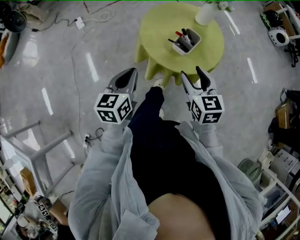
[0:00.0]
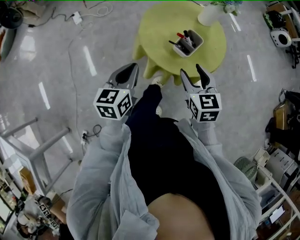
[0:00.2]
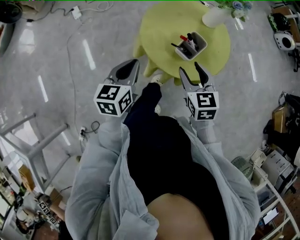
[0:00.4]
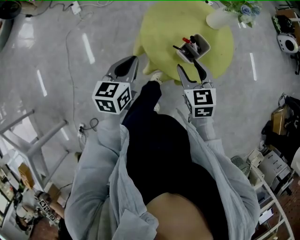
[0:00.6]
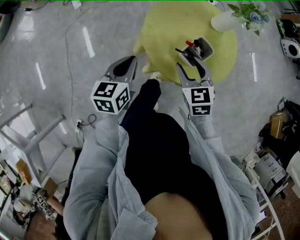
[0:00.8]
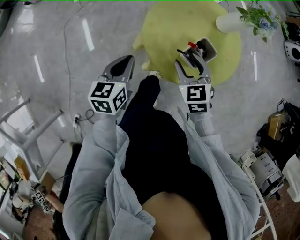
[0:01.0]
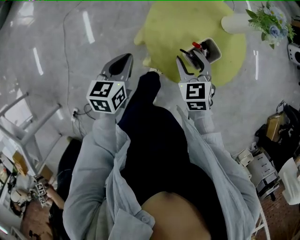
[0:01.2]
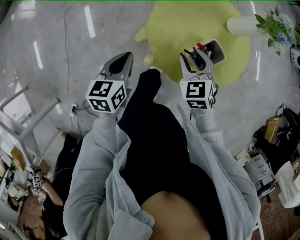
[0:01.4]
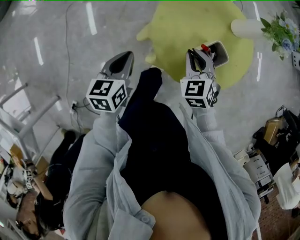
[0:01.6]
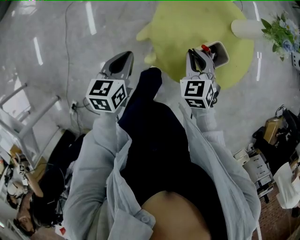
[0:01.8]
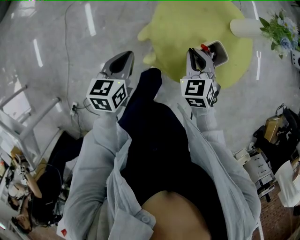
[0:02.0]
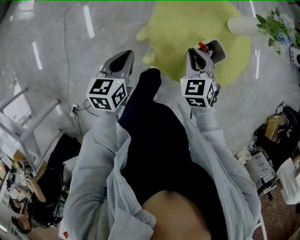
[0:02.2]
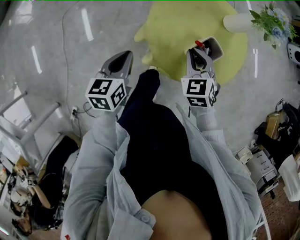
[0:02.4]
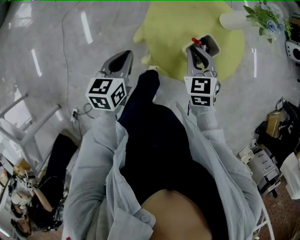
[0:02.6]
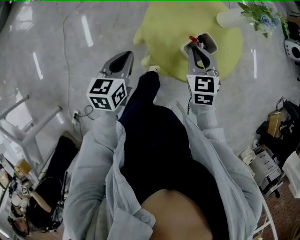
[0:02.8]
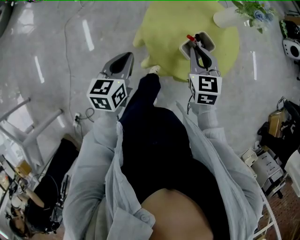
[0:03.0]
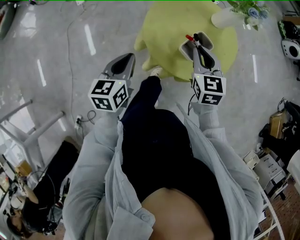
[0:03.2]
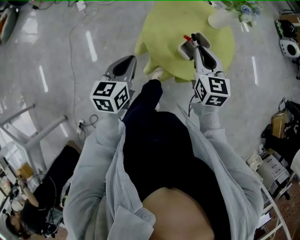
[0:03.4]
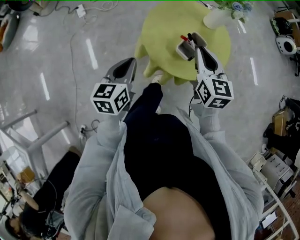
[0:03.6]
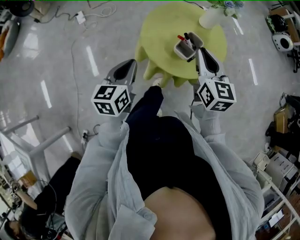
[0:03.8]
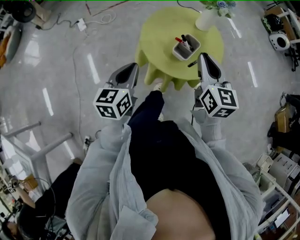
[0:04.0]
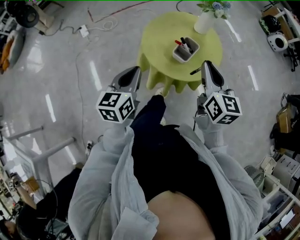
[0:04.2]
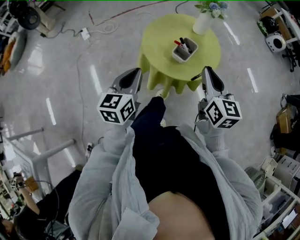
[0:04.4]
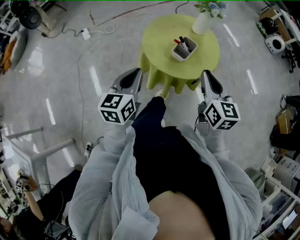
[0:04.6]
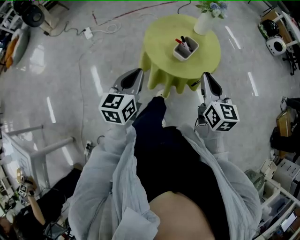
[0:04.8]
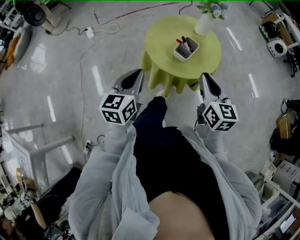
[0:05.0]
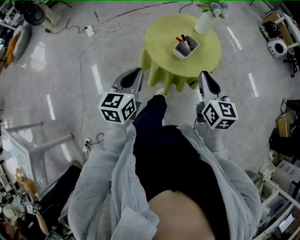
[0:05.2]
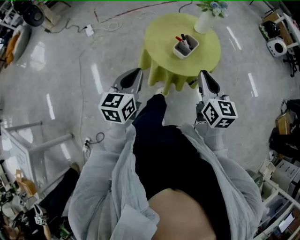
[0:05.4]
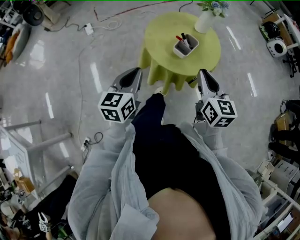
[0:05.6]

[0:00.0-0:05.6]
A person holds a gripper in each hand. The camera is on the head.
0:00.0 to 0:01.4: Both grippers move forward and downward, approximately 20 cm. The right gripper swivels some 30 degrees.
0:01.4 to 0:02.8: The right gripper shifts by approximately 5 cm, and closes its fingers.
0:02.8 to 0:04.2: Both grippers move upward and backward, approximately 20 cm. The right gripper turns by roughly 40 degrees.
0:04.2 to 0:05.6: Both grippers move backward, approximately 5 cm.

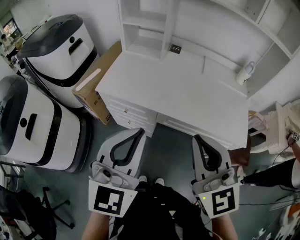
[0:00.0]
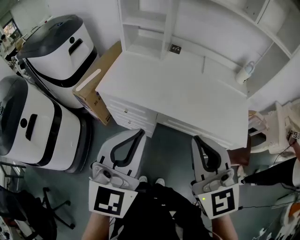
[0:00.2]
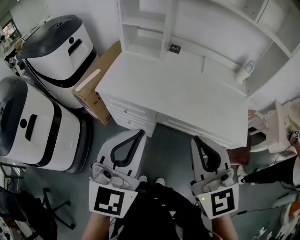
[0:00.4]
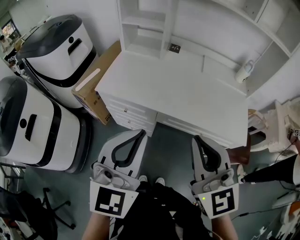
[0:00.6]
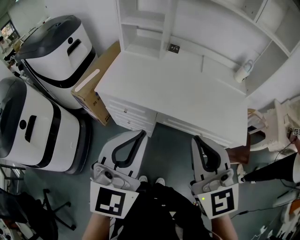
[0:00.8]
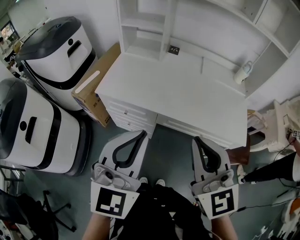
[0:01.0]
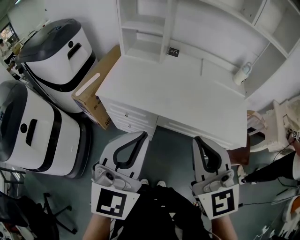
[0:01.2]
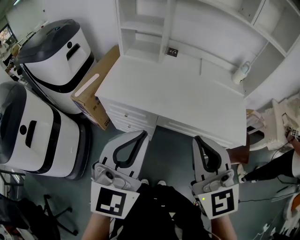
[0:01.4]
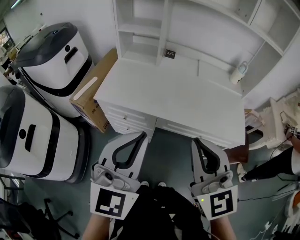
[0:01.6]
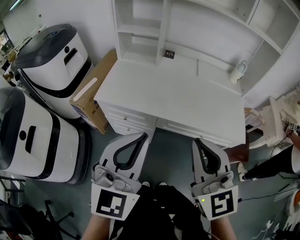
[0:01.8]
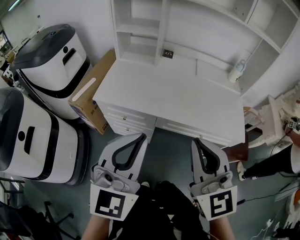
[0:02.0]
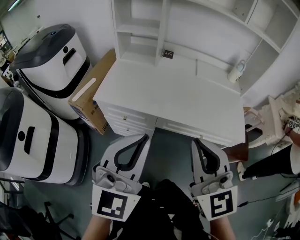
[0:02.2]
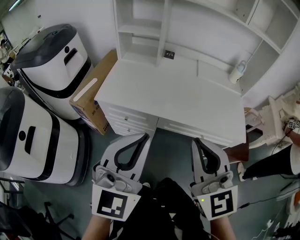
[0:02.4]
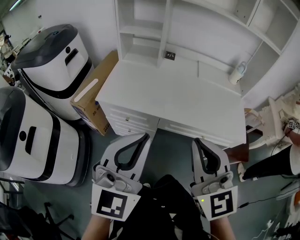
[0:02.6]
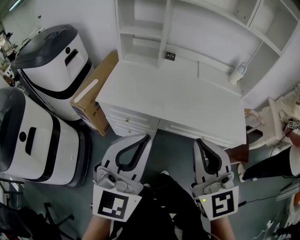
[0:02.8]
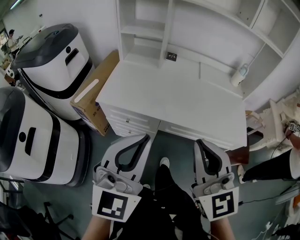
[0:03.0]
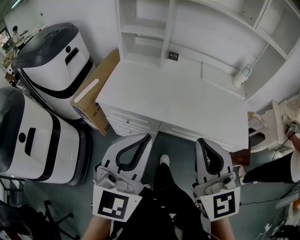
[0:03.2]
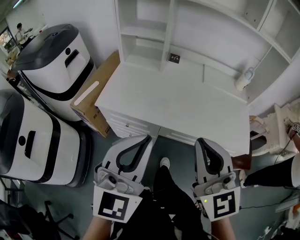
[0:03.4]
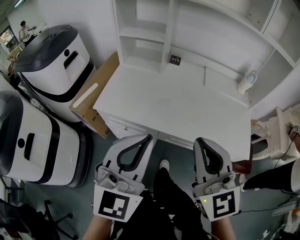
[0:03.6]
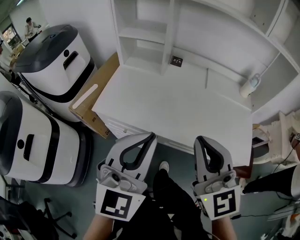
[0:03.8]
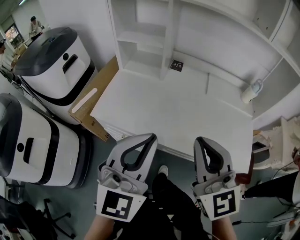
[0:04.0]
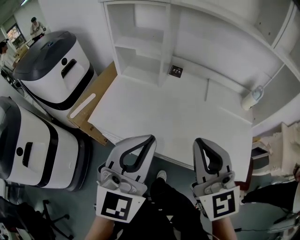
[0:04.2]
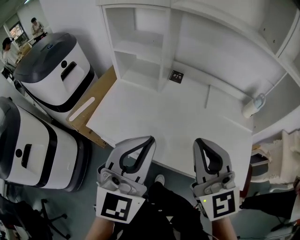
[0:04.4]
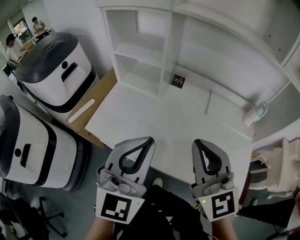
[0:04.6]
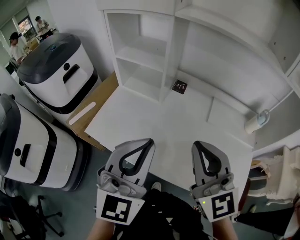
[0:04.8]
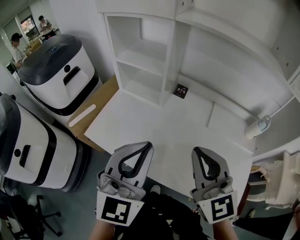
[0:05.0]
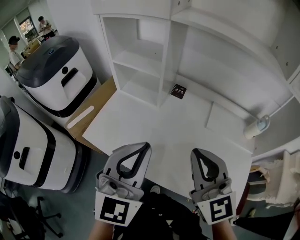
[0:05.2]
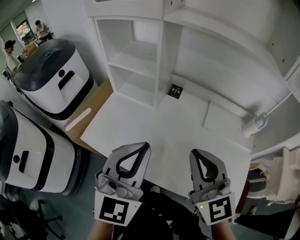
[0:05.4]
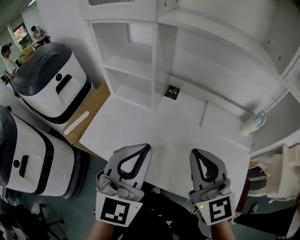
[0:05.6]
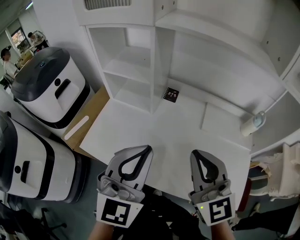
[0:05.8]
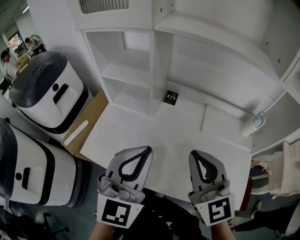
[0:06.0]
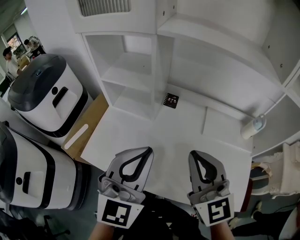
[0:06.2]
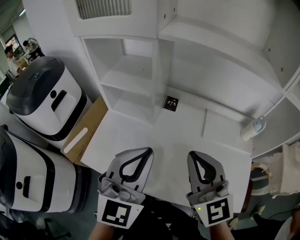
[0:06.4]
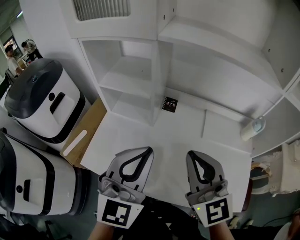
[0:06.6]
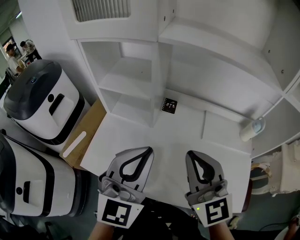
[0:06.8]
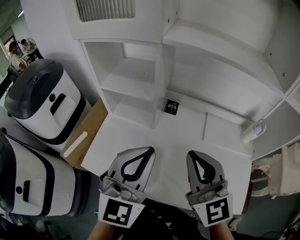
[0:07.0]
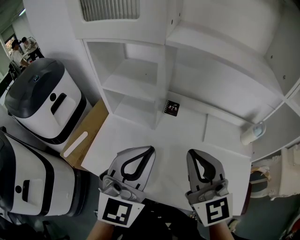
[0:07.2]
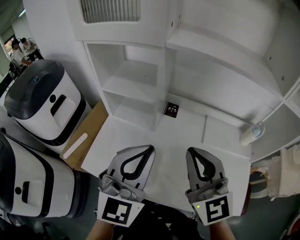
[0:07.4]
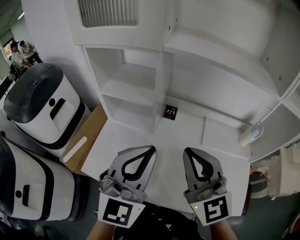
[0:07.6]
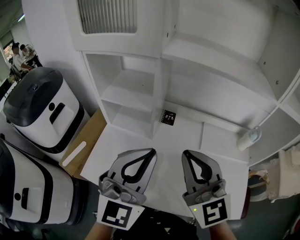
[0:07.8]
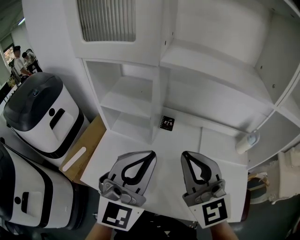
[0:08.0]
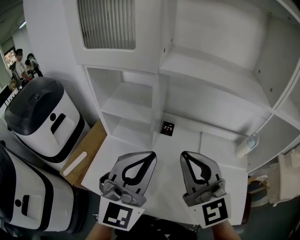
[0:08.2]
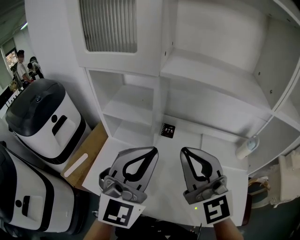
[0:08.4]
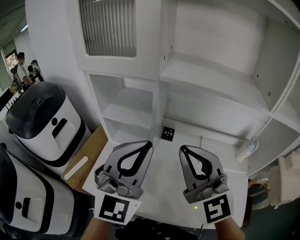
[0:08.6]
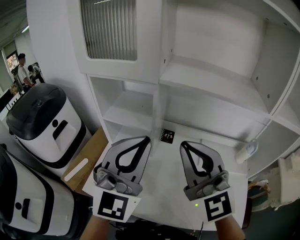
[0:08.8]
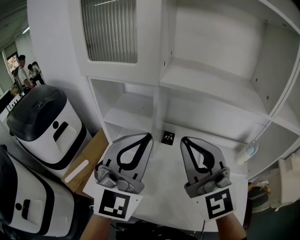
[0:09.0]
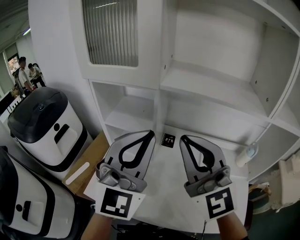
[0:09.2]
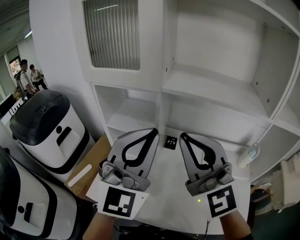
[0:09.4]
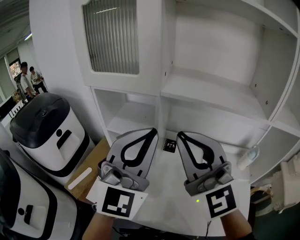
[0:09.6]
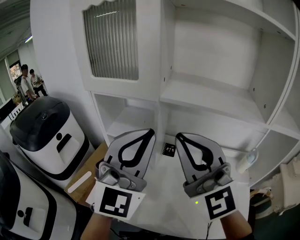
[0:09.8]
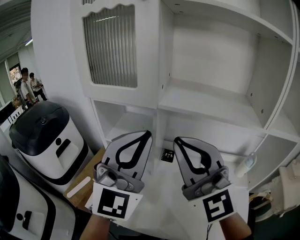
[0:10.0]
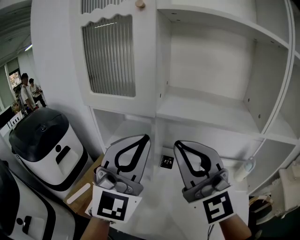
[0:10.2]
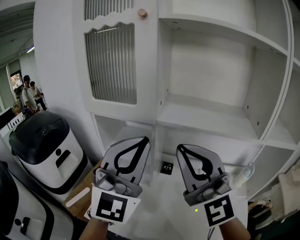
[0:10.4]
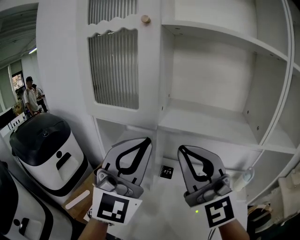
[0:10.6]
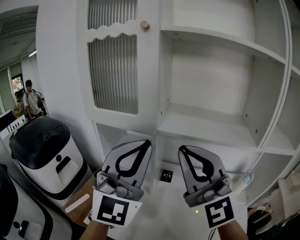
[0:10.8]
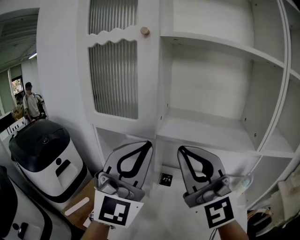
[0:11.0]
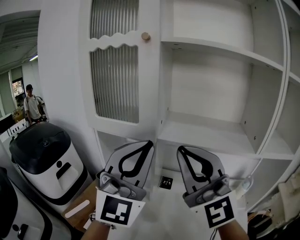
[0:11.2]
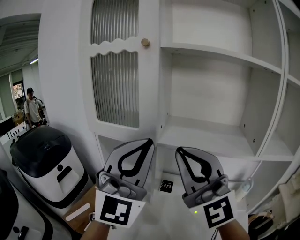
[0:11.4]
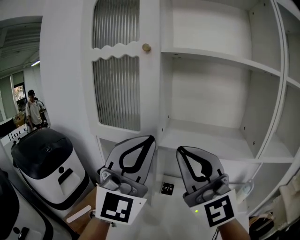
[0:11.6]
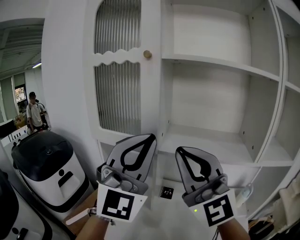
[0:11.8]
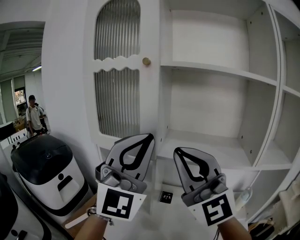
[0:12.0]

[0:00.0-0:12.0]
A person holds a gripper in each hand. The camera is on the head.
0:00.0 to 0:03.0: The grippers stay close to where they were, moving slightly.
0:03.0 to 0:04.4: The left gripper goes about 20 cm forward and to the right. The right gripper moves forward, some 20 cm.
0:04.4 to 0:06.0: Both grippers travel together forward, approximately 10 cm.
0:06.0 to 0:07.6: The right gripper heads to the left and forward, covering about 10 cm; the left gripper moves forward, approximately 5 cm.
0:07.6 to 0:09.0: The grippers both shift upward by about 10 cm.
0:09.0 to 0:10.4: Both grippers move upward, approximately 10 cm.
0:10.4 to 0:12.0: Both grippers move upward, some 10 cm.

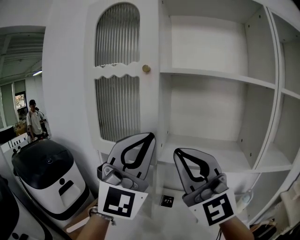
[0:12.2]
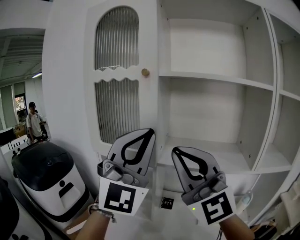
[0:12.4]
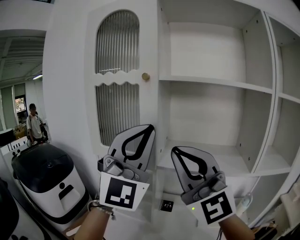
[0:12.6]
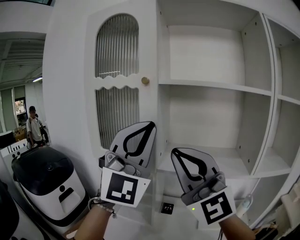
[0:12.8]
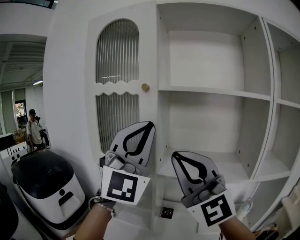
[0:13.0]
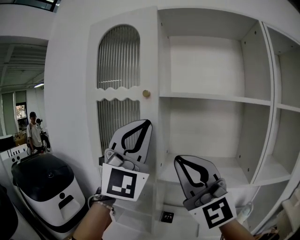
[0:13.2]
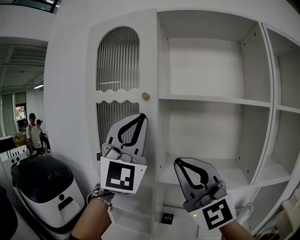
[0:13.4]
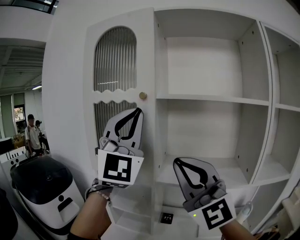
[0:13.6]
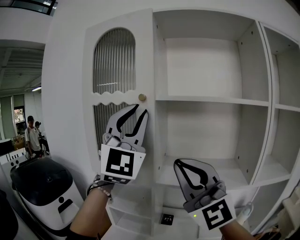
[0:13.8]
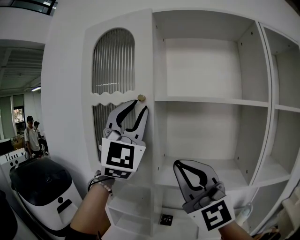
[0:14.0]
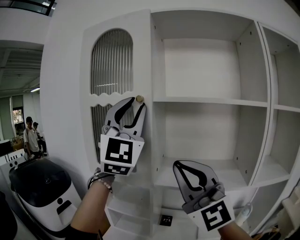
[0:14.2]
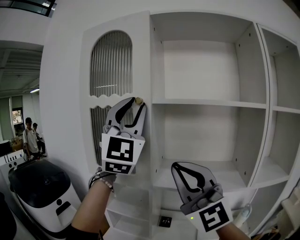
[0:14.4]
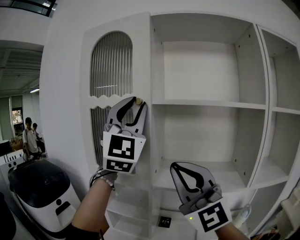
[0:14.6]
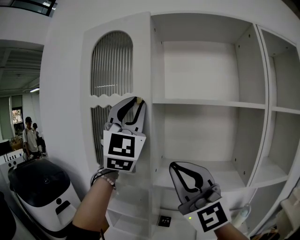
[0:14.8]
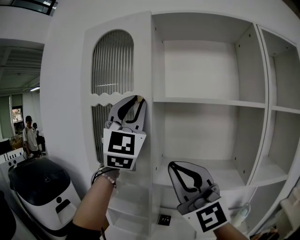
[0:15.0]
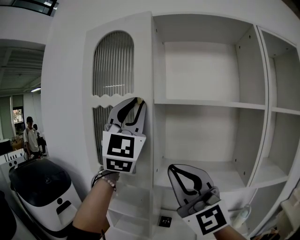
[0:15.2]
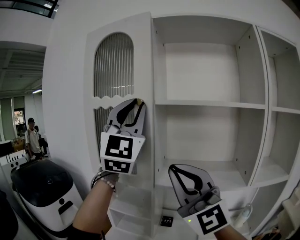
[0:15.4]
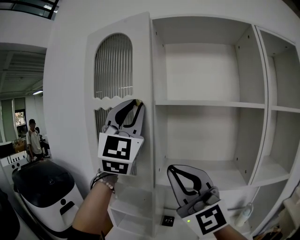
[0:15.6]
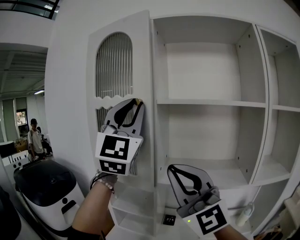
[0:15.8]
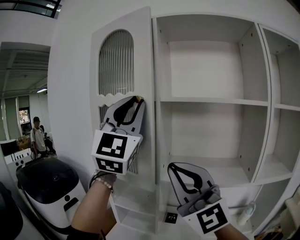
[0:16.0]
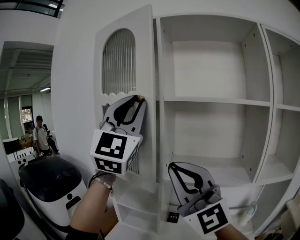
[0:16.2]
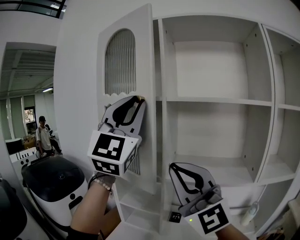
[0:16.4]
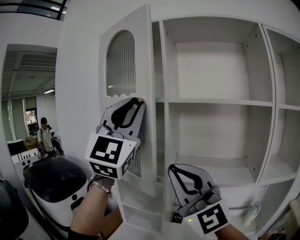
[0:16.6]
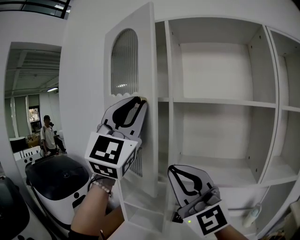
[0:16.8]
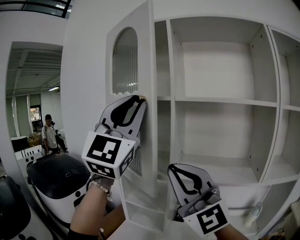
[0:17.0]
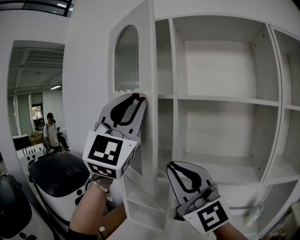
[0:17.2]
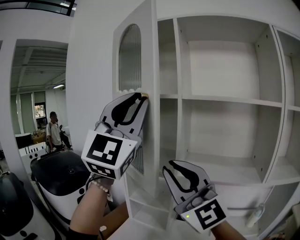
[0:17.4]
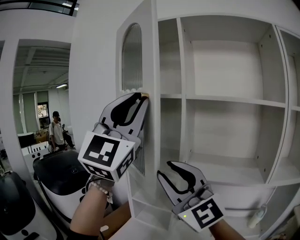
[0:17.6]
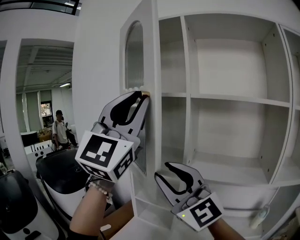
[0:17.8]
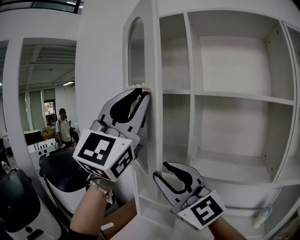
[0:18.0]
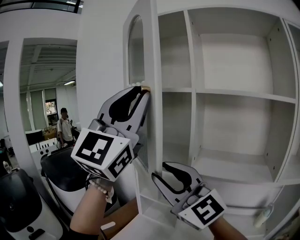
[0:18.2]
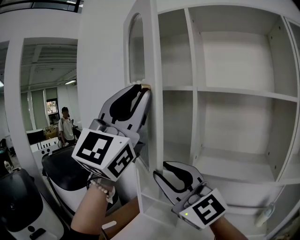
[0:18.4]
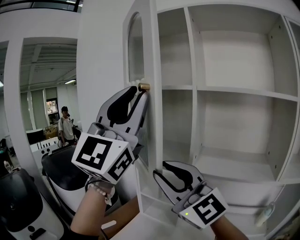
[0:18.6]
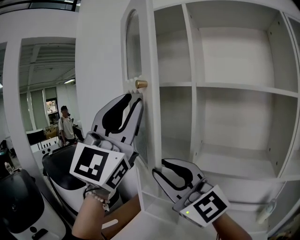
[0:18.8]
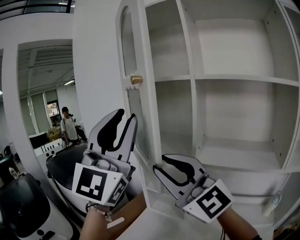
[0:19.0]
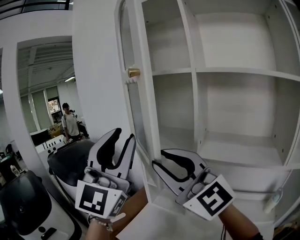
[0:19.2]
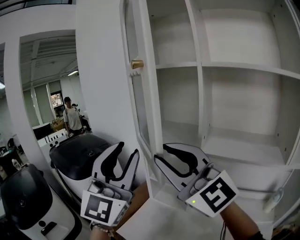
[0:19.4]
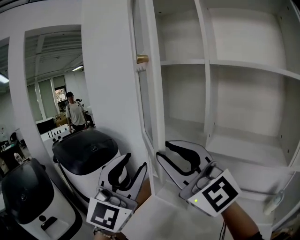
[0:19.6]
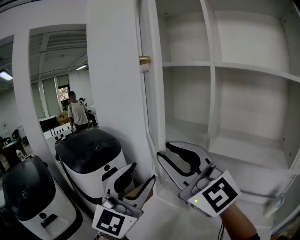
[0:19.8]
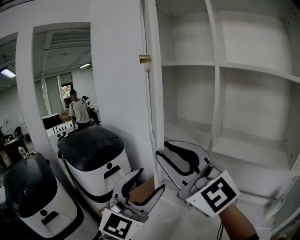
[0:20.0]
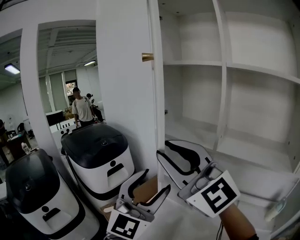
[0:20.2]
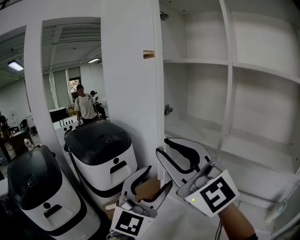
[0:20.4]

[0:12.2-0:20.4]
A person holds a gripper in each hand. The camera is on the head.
0:12.2 to 0:13.8: The left gripper travels upward and forward by roughly 15 cm.
0:13.8 to 0:15.4: The grippers stay close to where they were, moving slightly.
0:15.4 to 0:17.2: The left gripper heads backward and to the left, covering roughly 10 cm. Meanwhile the right gripper heads to the left, covering approximately 5 cm.
0:17.2 to 0:18.8: Both grippers move to the left, approximately 5 cm. The right gripper opens its fingers.
0:18.8 to 0:20.4: The left gripper goes roughly 25 cm downward, turns by roughly 30 degrees, and opens its fingers; the right gripper moves to the left, some 10 cm.
